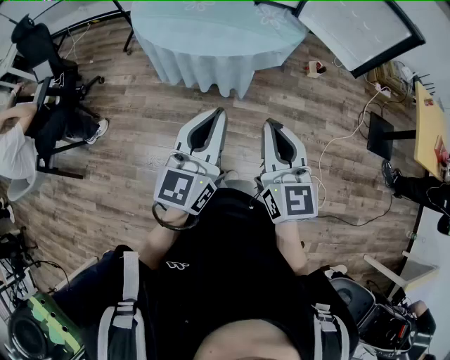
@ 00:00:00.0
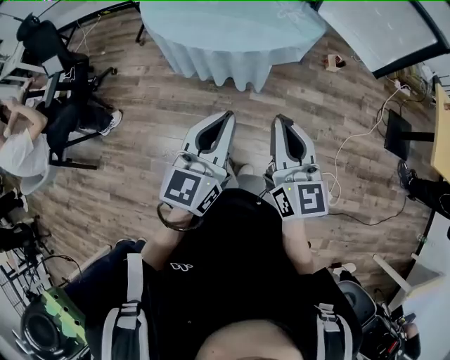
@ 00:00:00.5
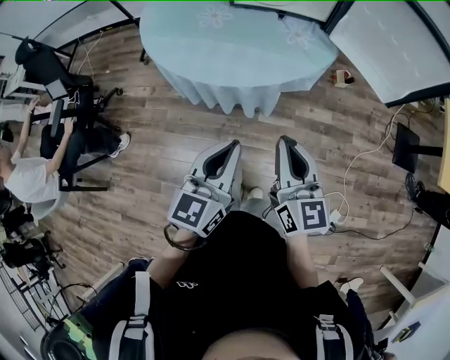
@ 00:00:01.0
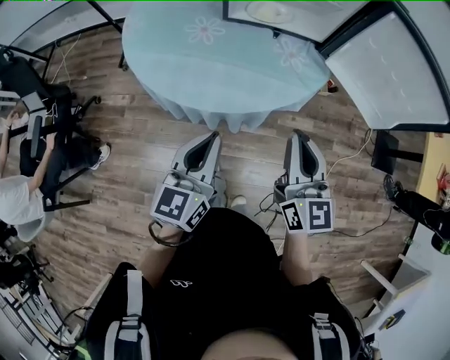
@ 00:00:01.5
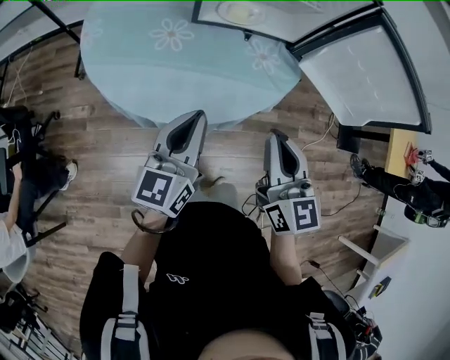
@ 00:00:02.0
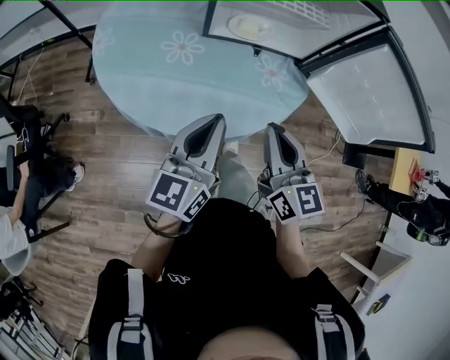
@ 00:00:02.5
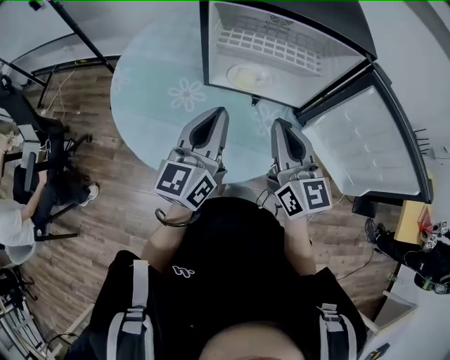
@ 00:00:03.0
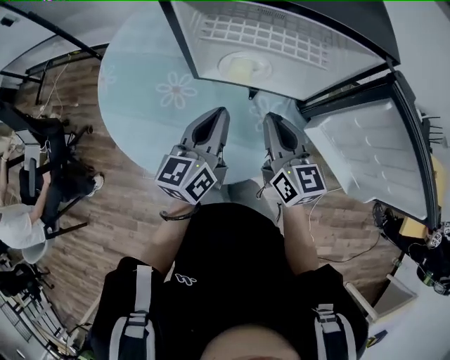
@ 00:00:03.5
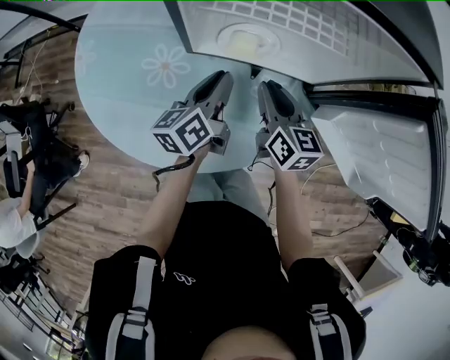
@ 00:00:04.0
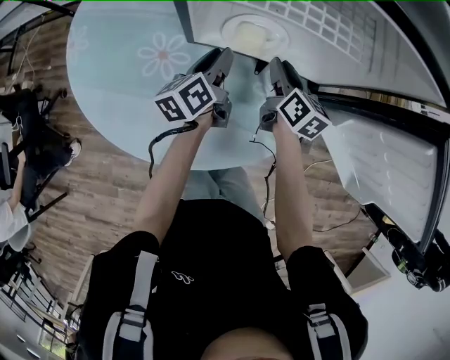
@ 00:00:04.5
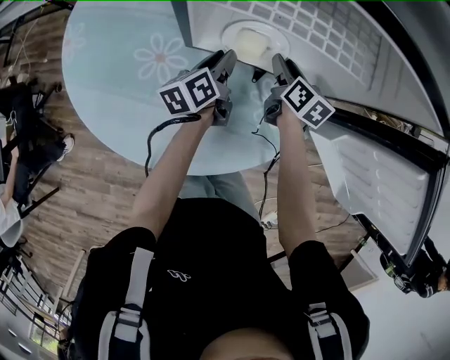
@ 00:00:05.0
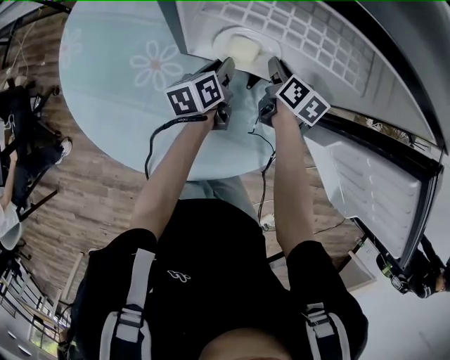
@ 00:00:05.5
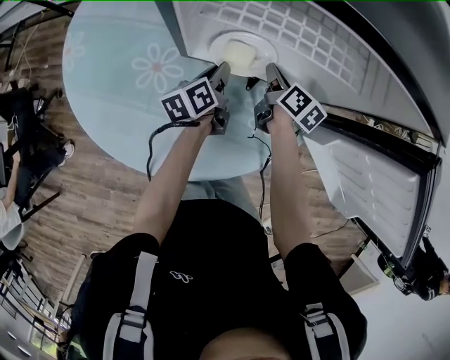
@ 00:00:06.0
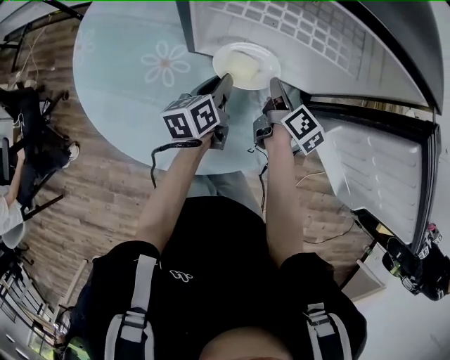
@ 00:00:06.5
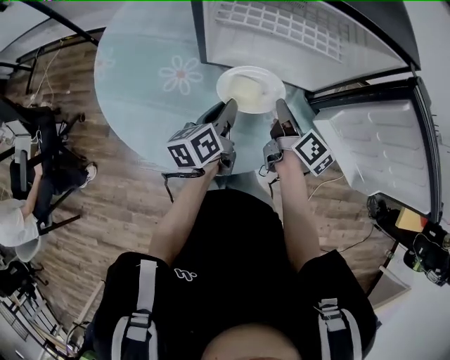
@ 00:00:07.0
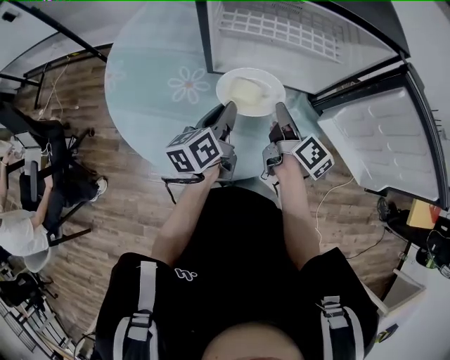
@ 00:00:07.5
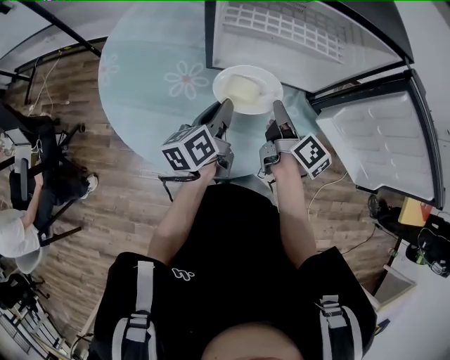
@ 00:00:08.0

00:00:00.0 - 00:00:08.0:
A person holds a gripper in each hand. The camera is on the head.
00:00:00.0 - 00:00:02.0: The right gripper heads forward, covering about 30 cm. Meanwhile the left gripper goes approximately 35 cm forward and to the left.
00:00:02.0 - 00:00:04.0: The left gripper is displaced forward by roughly 30 cm, and turns by about 30 degrees; the right gripper moves forward and downward, roughly 35 cm, and swivels roughly 20 degrees.
00:00:04.0 - 00:00:06.0: The left gripper heads downward and forward, covering roughly 15 cm. The right gripper travels forward and downward by some 15 cm, turns by about 30 degrees, and opens, then closes again.
00:00:06.0 - 00:00:08.0: Both grippers travel together backward and upward, roughly 20 cm. The right gripper swivels approximately 20 degrees.

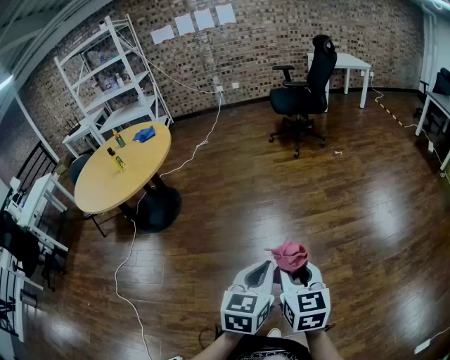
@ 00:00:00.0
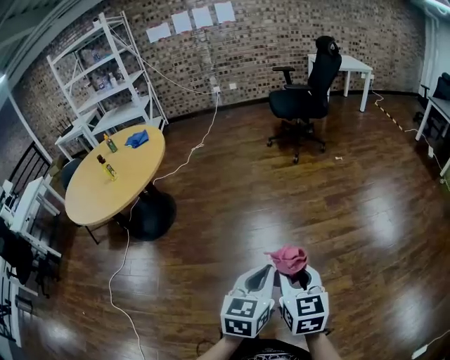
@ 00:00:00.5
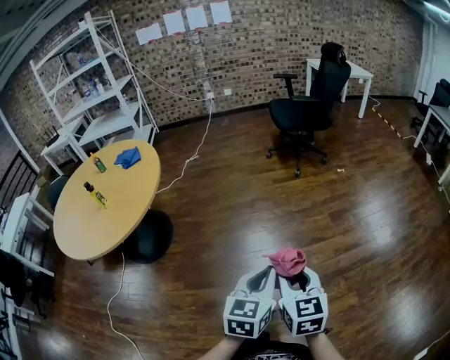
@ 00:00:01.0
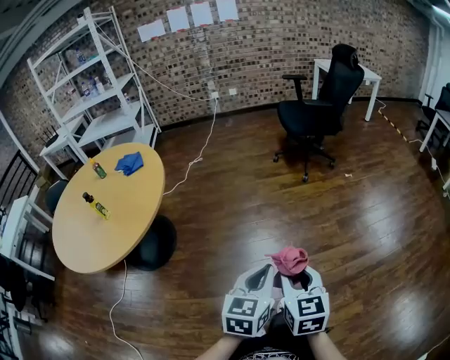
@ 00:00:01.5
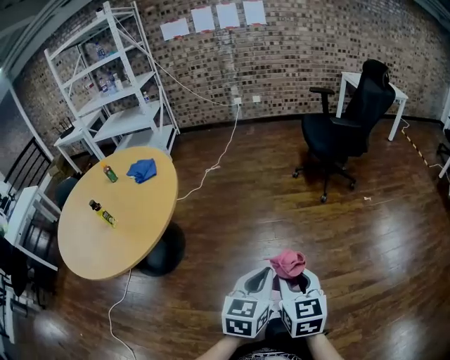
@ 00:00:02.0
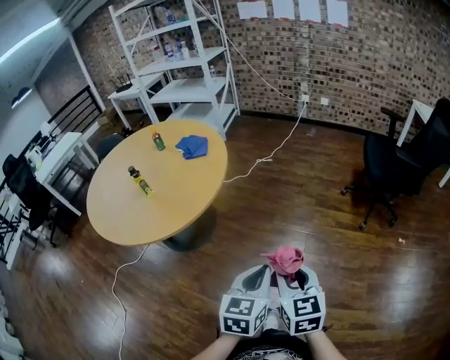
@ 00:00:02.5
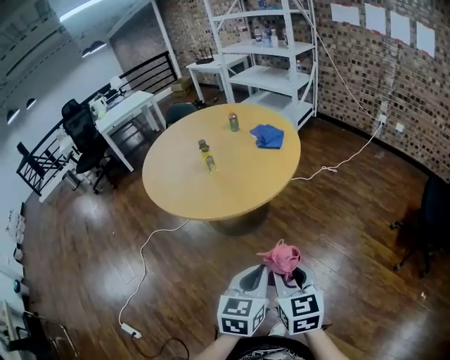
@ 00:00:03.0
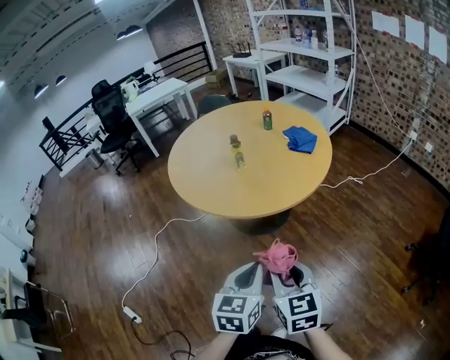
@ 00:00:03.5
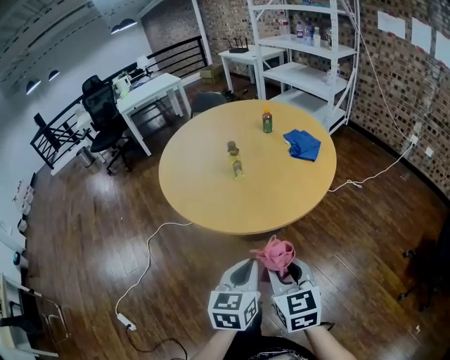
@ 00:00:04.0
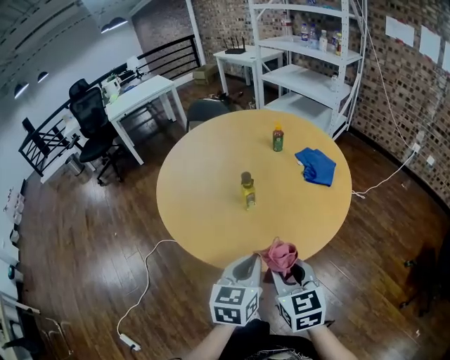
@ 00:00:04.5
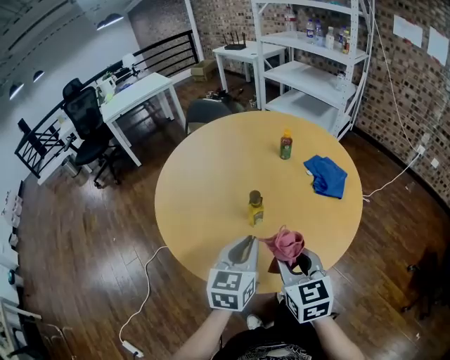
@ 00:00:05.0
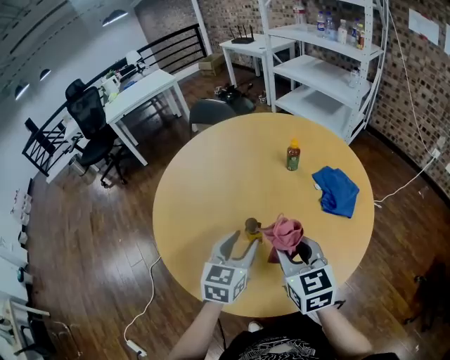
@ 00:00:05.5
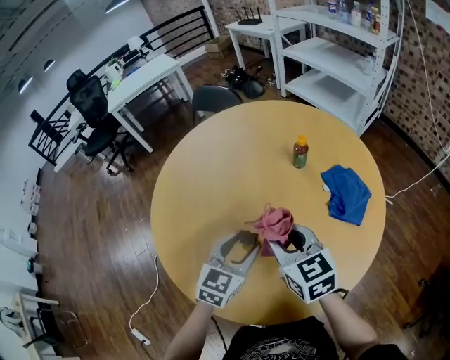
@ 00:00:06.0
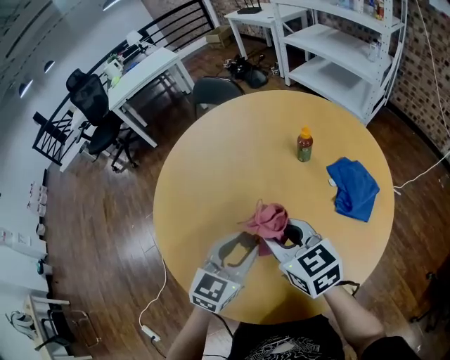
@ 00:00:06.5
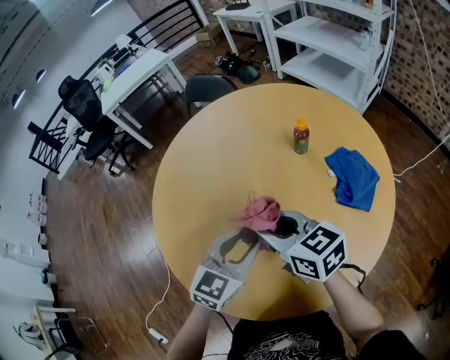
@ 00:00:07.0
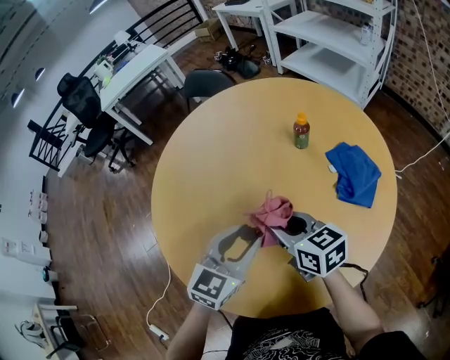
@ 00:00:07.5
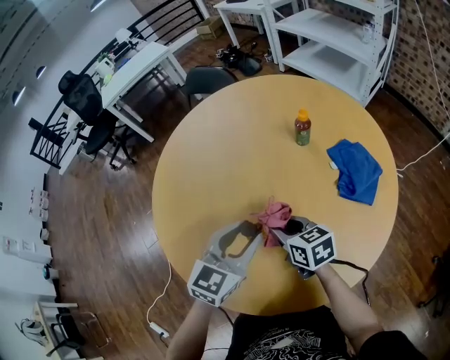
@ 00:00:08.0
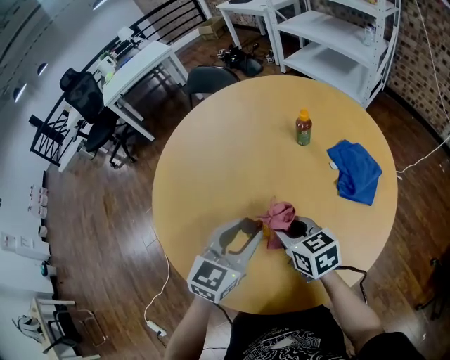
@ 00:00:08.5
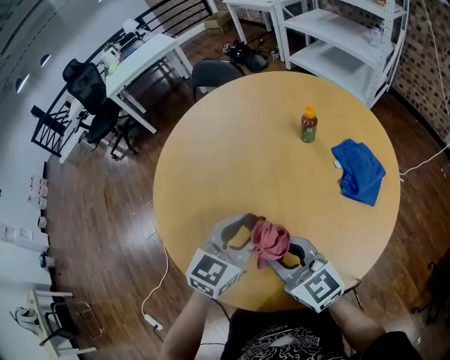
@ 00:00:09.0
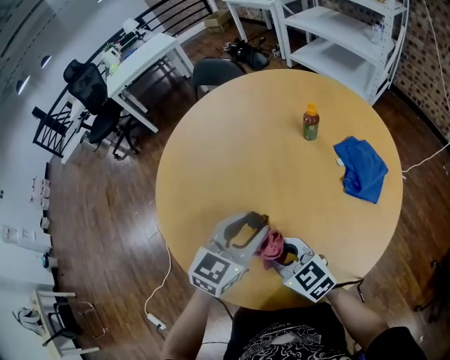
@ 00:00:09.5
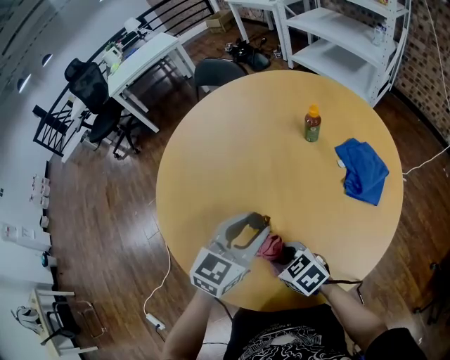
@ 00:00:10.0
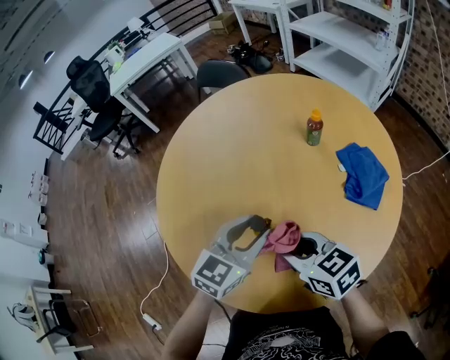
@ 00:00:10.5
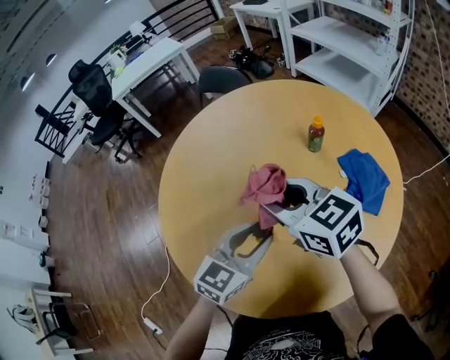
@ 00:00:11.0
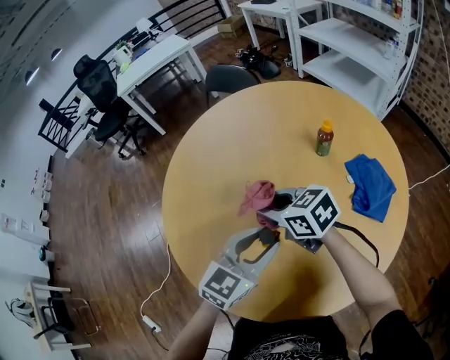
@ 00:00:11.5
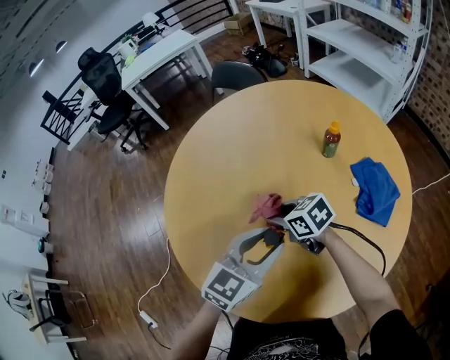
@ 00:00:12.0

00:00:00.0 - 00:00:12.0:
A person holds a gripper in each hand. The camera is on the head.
00:00:00.0 - 00:00:02.0: The two grippers travel together, forward and to the left, about 50 cm.
00:00:02.0 - 00:00:04.0: The right gripper changes place by some 40 cm, and swivels roughly 60 degrees. The left gripper moves roughly 40 cm, and changes its angle by approximately 60 degrees.
00:00:04.0 - 00:00:06.0: Both grippers are carried forward, some 50 cm. The left gripper rotates some 20 degrees, and opens.
00:00:06.0 - 00:00:08.0: The right gripper travels downward by some 15 cm, and changes its angle by approximately 20 degrees.
00:00:08.0 - 00:00:10.0: The right gripper goes about 10 cm backward, moves roughly 10 cm upward and comes back, and rotates some 30 degrees.
00:00:10.0 - 00:00:12.0: The right gripper travels forward by about 15 cm, and reaches approximately 20 cm upward, then returns.

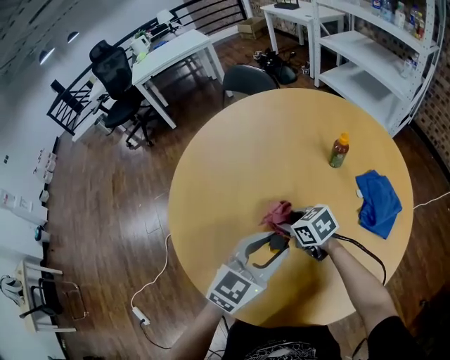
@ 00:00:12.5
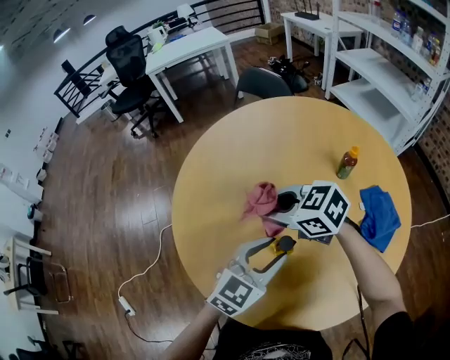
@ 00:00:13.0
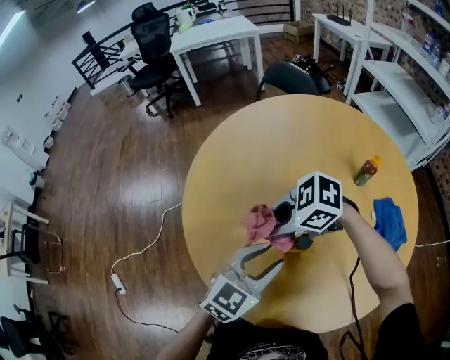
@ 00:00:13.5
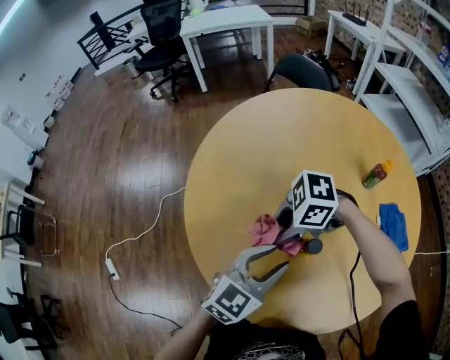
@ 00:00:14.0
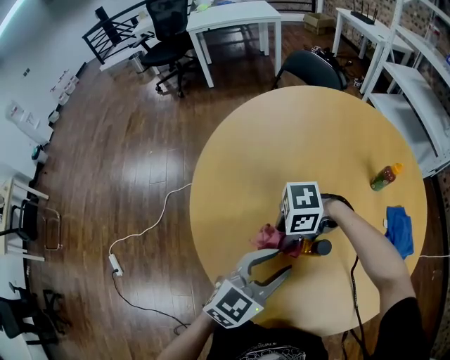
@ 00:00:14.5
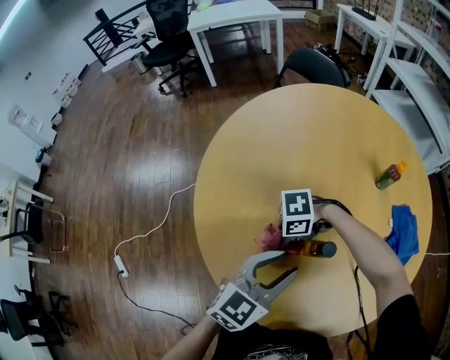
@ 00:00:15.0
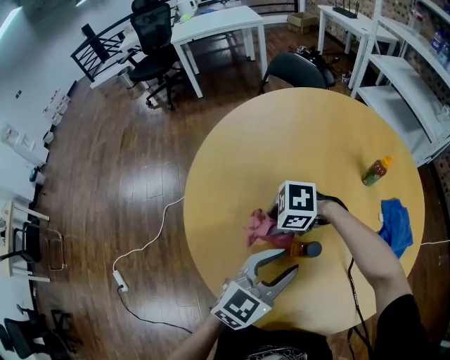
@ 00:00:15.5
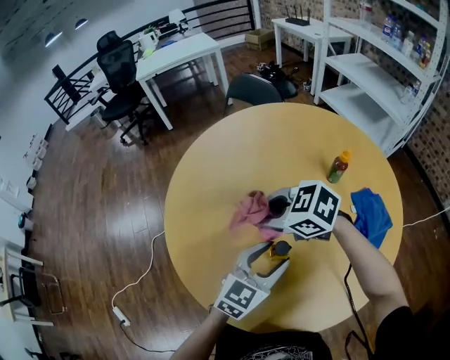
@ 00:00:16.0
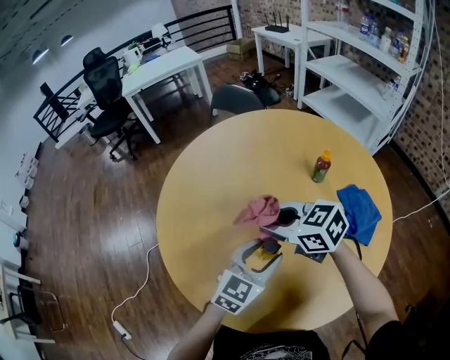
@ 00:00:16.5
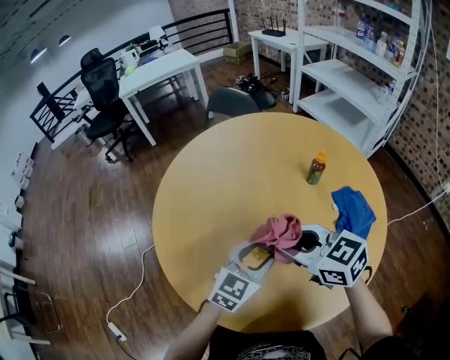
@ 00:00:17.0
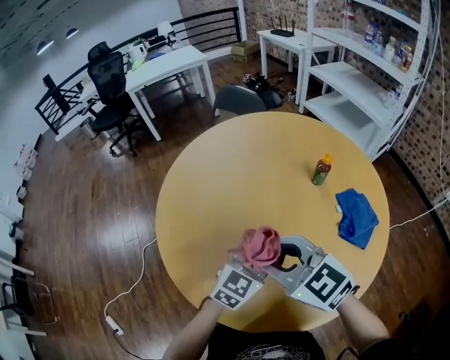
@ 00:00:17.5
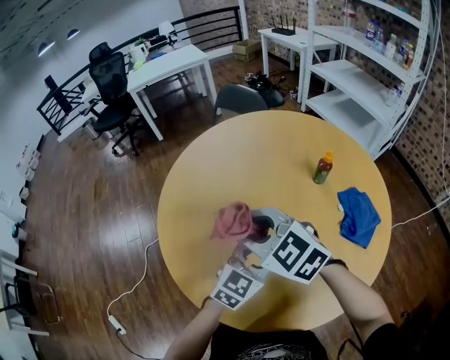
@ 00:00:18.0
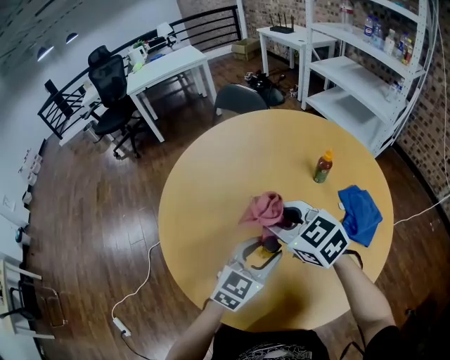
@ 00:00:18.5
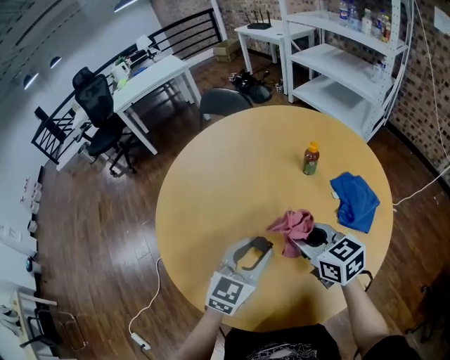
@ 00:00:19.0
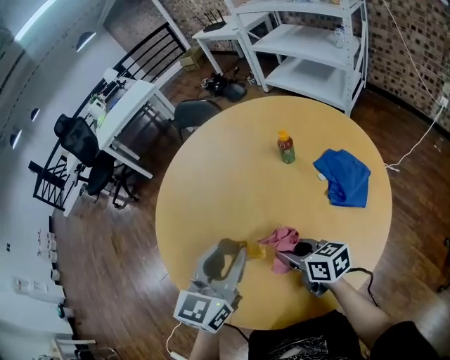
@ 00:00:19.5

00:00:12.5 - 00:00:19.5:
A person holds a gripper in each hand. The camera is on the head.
00:00:12.5 - 00:00:14.5: The left gripper ends up approximately 10 cm from where it was. The right gripper travels upward and back again, roughly 15 cm each way, and swivels some 80 degrees.
00:00:14.5 - 00:00:16.0: The left gripper changes place by about 5 cm. Meanwhile the right gripper is displaced upward by about 10 cm, and swivels approximately 60 degrees.
00:00:16.0 - 00:00:17.5: The right gripper ends up roughly 15 cm from where it was, and rotates some 30 degrees.
00:00:17.5 - 00:00:19.5: The left gripper travels upward by some 10 cm. The right gripper is displaced downward and to the right by some 20 cm, and twists about 50 degrees clockwise, seen from behind.
